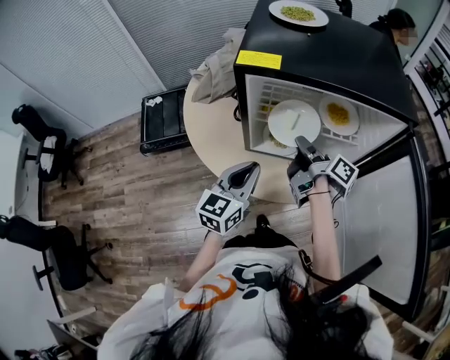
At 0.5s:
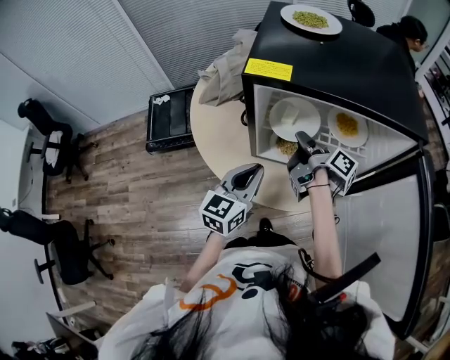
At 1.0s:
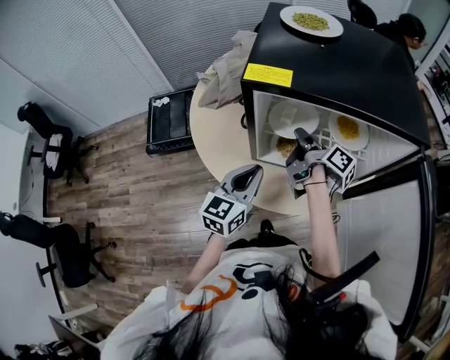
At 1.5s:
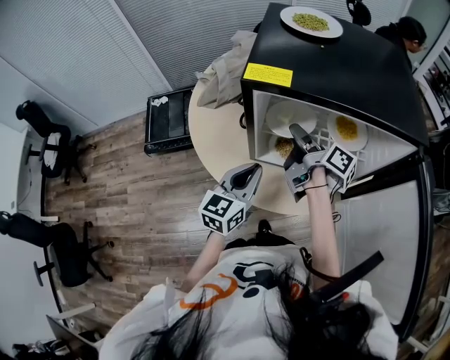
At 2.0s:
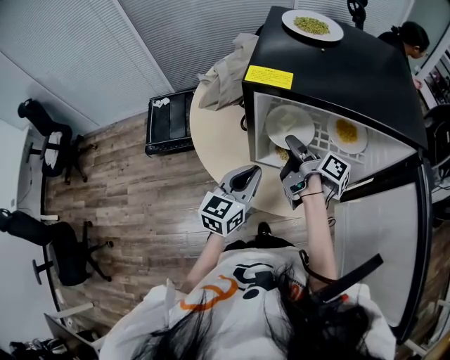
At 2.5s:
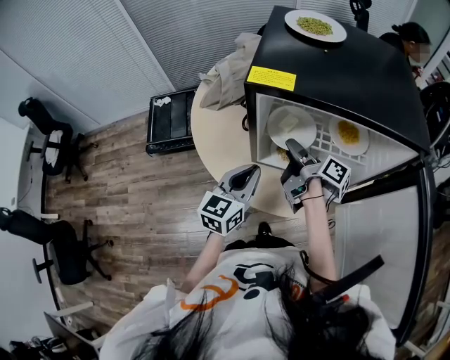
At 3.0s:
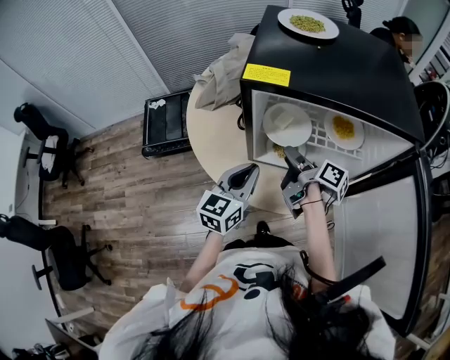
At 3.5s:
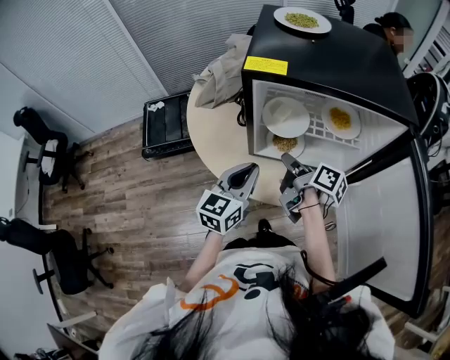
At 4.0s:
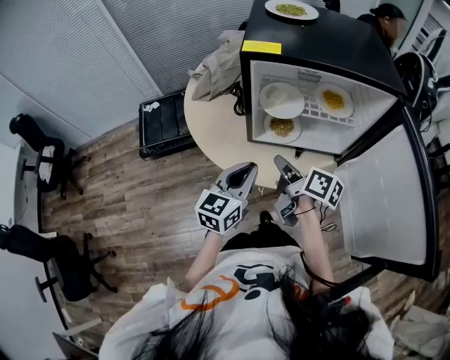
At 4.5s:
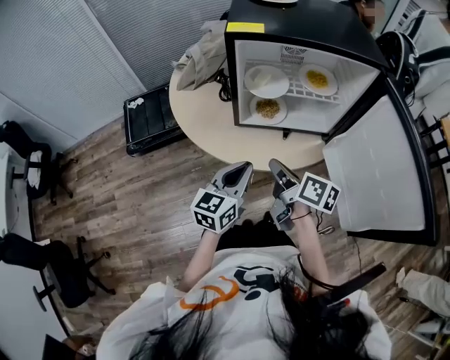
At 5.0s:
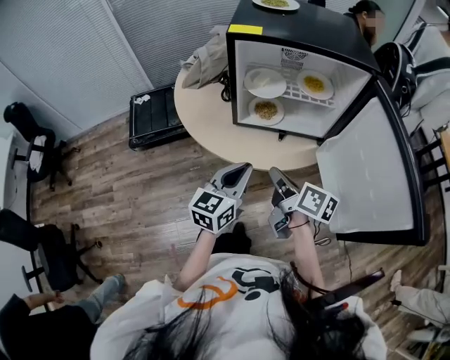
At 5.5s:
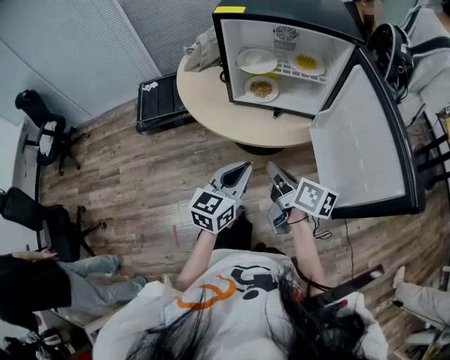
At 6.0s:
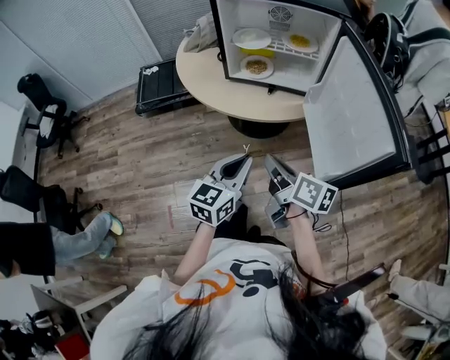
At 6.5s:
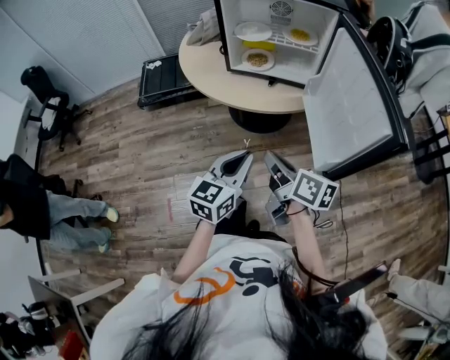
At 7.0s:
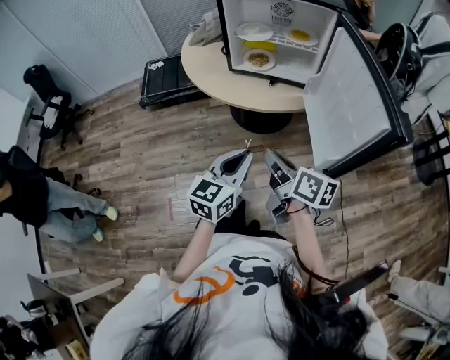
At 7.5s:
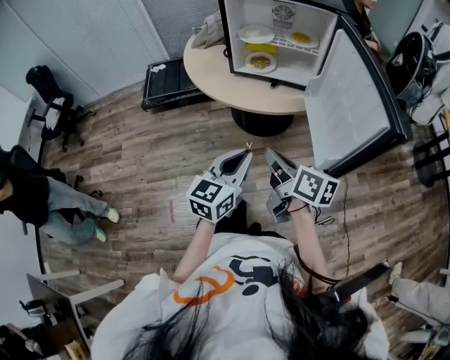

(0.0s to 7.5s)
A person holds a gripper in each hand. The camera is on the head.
2.0s - 4.0s: The left gripper shifts by about 10 cm.
4.0s - 5.5s: The left gripper ends up roughly 20 cm from where it was.
5.5s - 7.5s: The left gripper changes place by some 15 cm.

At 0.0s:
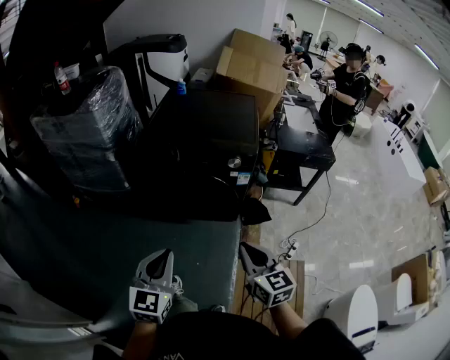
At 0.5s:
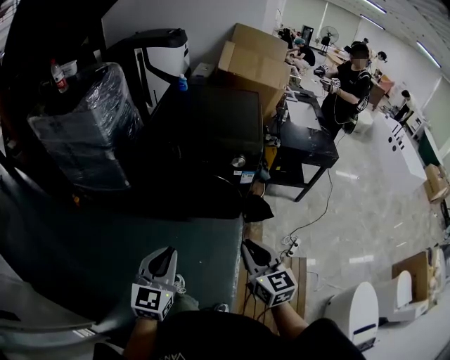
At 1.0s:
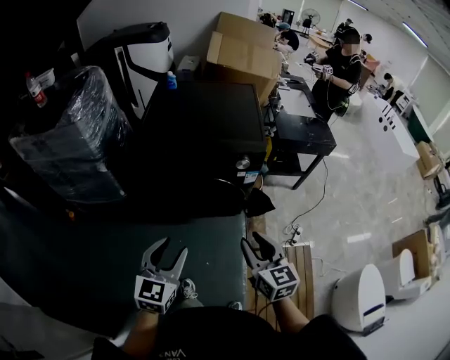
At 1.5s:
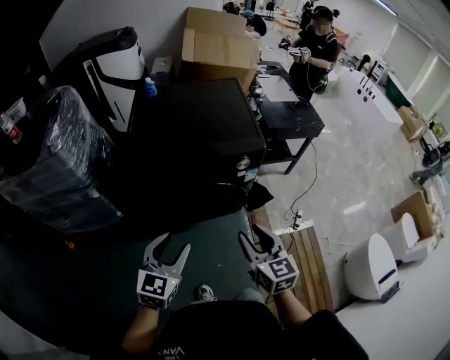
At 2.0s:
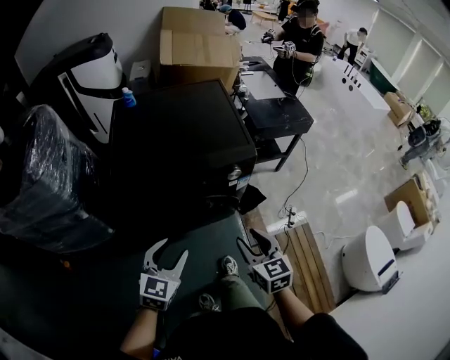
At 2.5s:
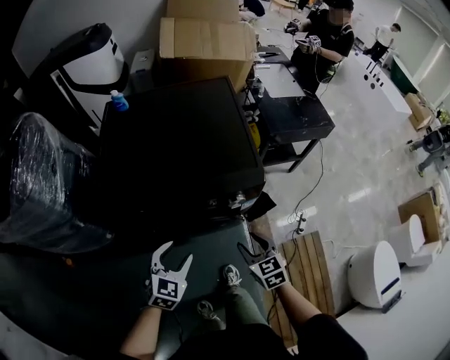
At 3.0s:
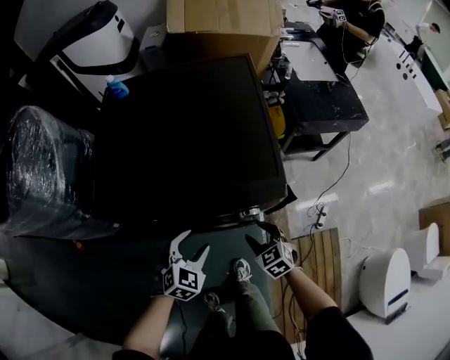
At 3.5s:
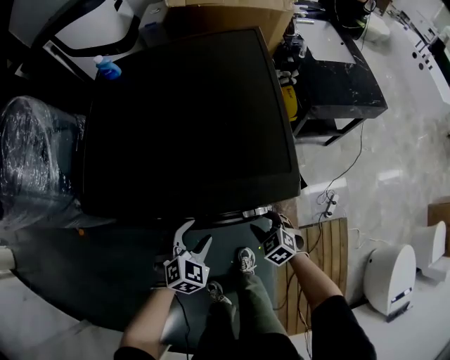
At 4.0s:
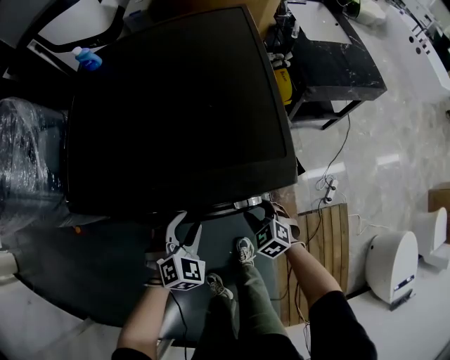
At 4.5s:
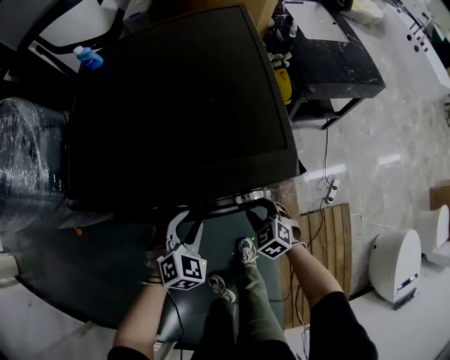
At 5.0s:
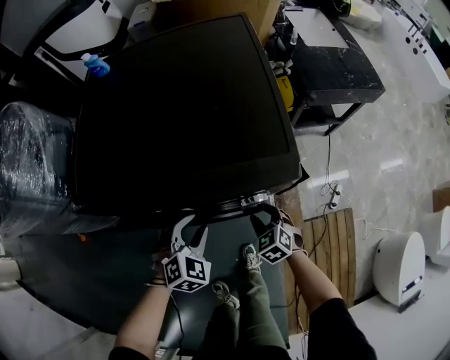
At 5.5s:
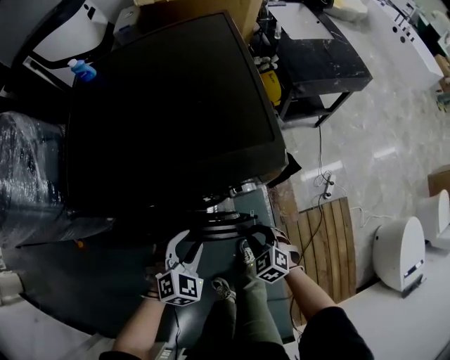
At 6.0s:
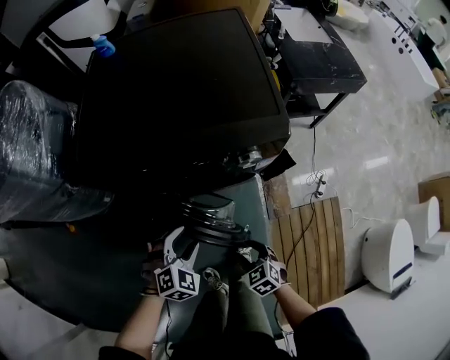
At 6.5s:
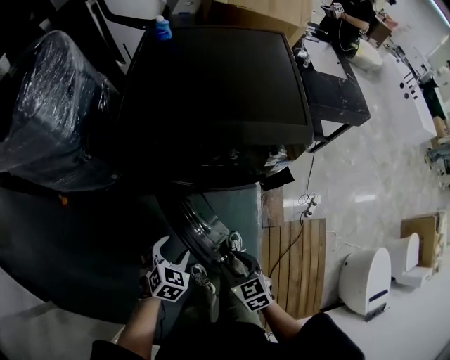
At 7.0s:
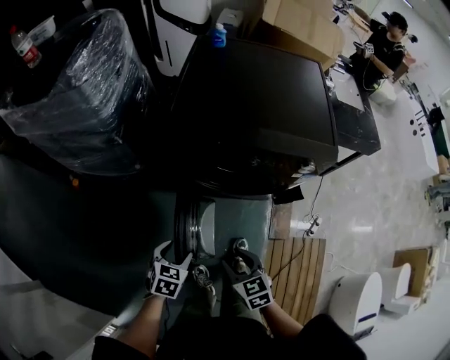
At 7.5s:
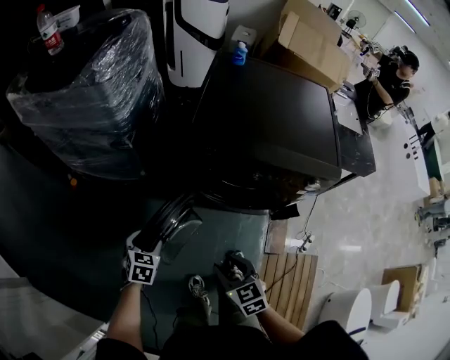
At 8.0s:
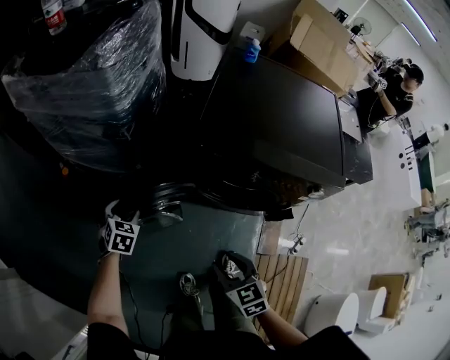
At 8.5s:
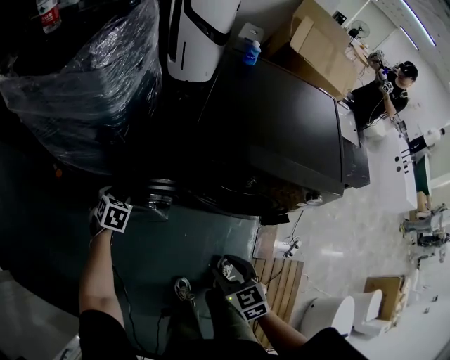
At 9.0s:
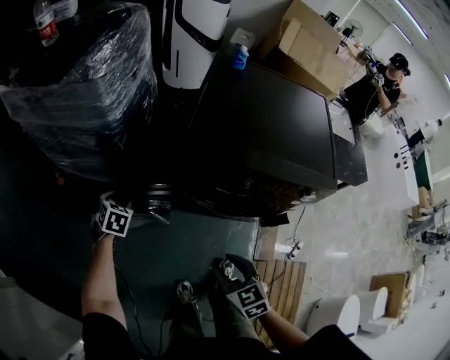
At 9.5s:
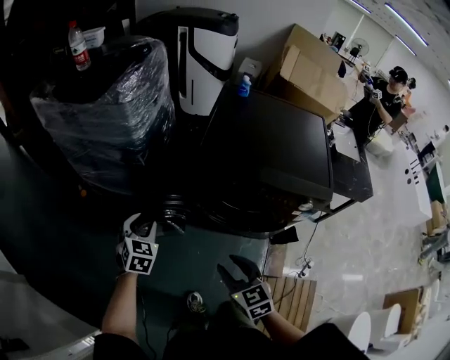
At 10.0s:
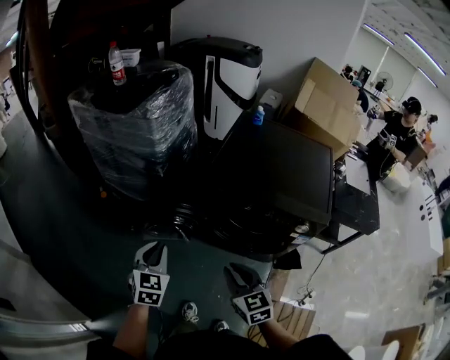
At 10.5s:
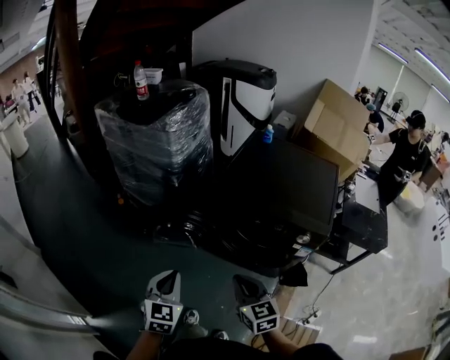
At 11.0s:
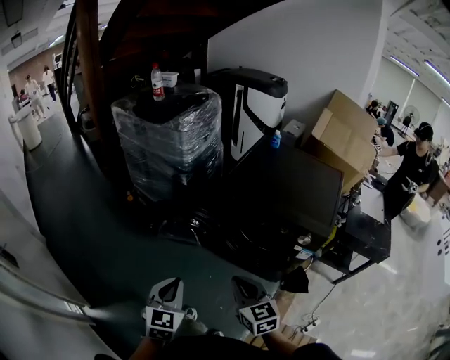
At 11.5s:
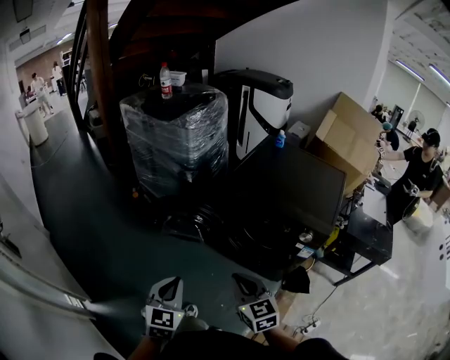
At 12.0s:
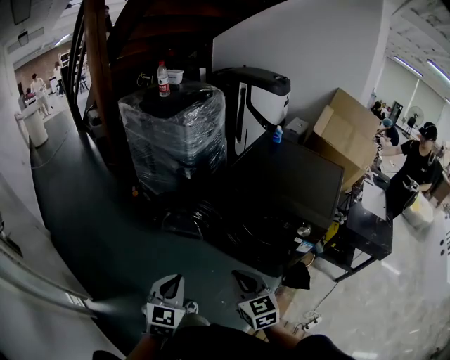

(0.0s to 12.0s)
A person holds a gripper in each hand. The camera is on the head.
0.0s - 2.0s: The right gripper ends up roughly 25 cm from where it was, rotates some 20 degrees, and opens. The left gripper moves approximately 30 cm, changes its angle by about 30 degrees, and opens its fingers.
2.0s - 4.0s: The right gripper travels downward and forward by approximately 40 cm, and rotates some 40 degrees, while the left gripper is displaced downward, forward and to the right by roughly 30 cm, and turns by roughly 40 degrees.
4.0s - 6.0s: The right gripper moves backward, roughly 20 cm. Meanwhile the left gripper heads backward, covering approximately 15 cm.
6.0s - 8.0s: The left gripper moves to the left, roughly 40 cm, and rolls counterclockwise, seen from behind, by some 50 degrees. The right gripper goes approximately 30 cm to the left and upward.
8.0s - 10.0s: The right gripper heads upward, covering approximately 15 cm, and closes. Meanwhile the left gripper goes approximately 30 cm upward and backward, rotates some 20 degrees, and closes up.
10.0s - 12.0s: The right gripper shifts about 15 cm backward, while the left gripper heads backward, covering some 25 cm.

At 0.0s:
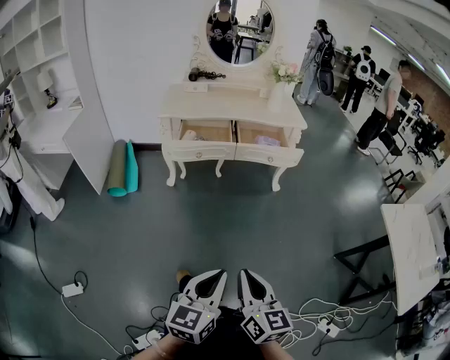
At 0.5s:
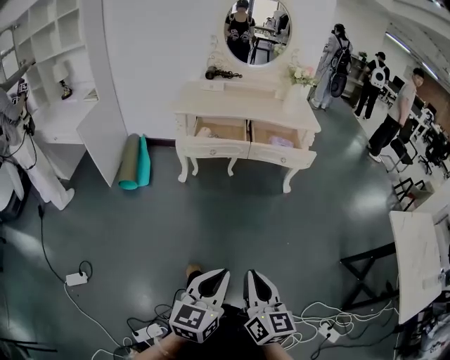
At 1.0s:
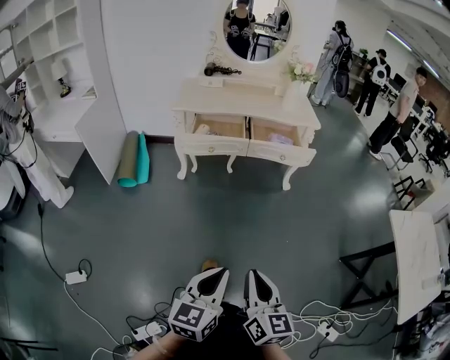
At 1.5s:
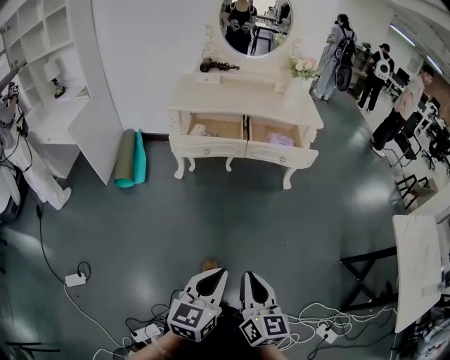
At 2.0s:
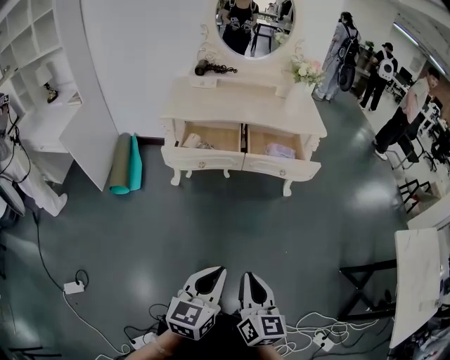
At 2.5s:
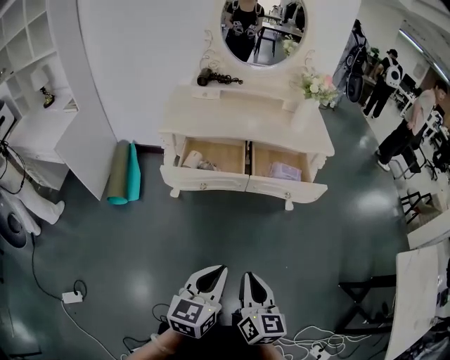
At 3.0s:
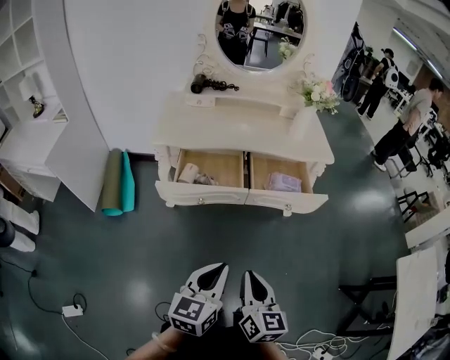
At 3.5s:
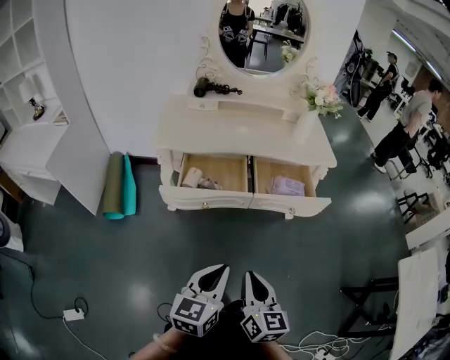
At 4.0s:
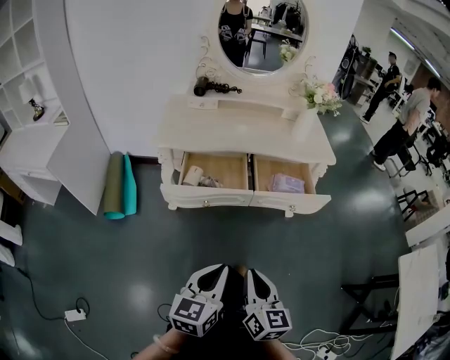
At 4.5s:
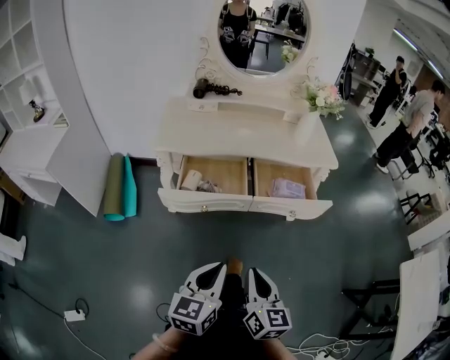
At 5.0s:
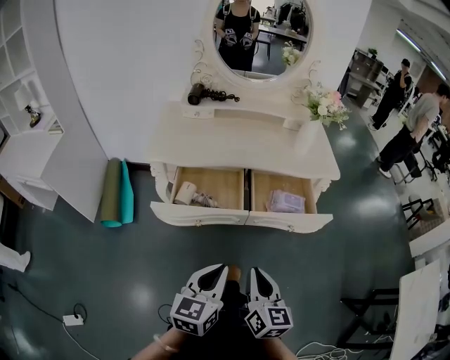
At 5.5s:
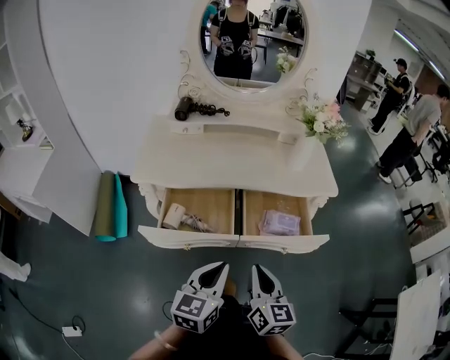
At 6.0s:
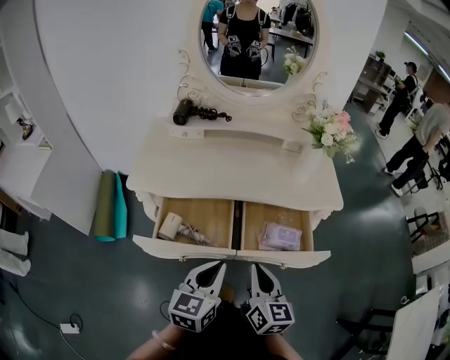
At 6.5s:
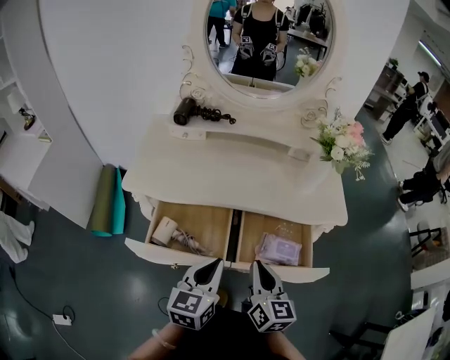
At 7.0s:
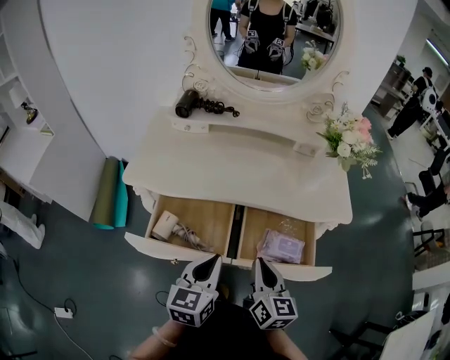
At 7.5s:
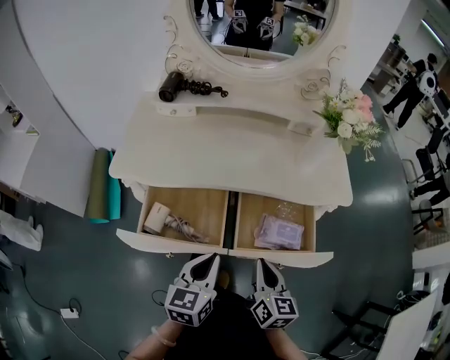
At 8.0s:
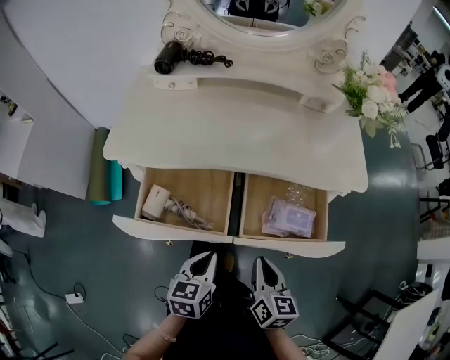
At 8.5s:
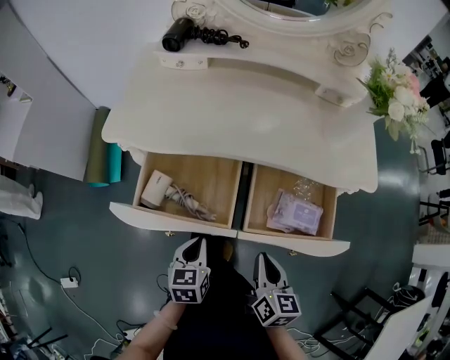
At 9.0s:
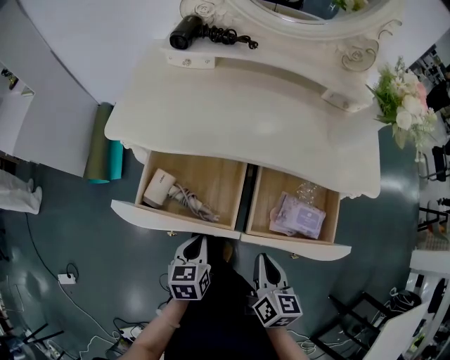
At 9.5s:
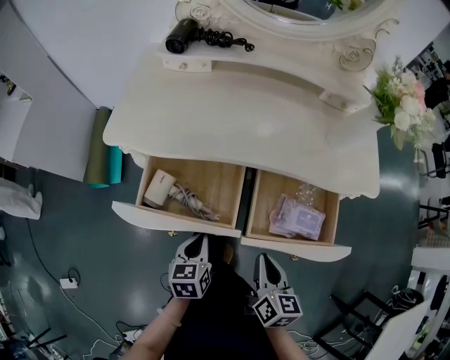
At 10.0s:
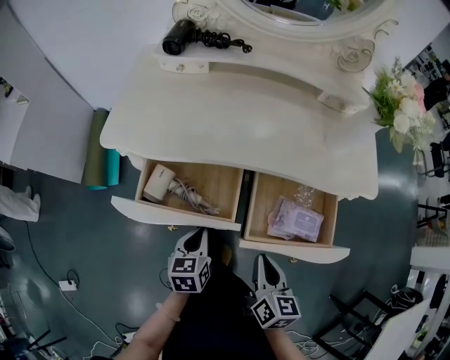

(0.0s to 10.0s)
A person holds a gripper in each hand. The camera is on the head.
0.0s - 2.0s: Both grippers move forward, approximately 15 cm.
2.0s - 4.0s: Both grippers move forward and to the left, about 20 cm.
4.0s - 6.0s: Both grippers travel together forward, about 25 cm.
6.0s - 8.0s: Both grippers move downward, roughly 15 cm. The left gripper turns by approximately 20 degrees.
8.0s - 10.0s: The left gripper heads downward, forward and to the left, covering some 10 cm.
